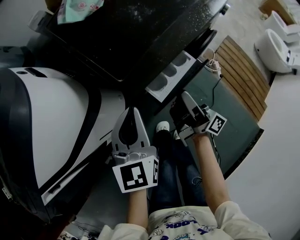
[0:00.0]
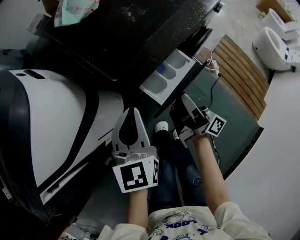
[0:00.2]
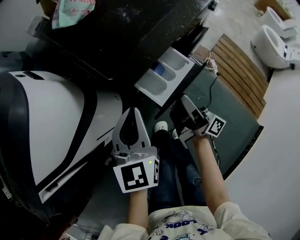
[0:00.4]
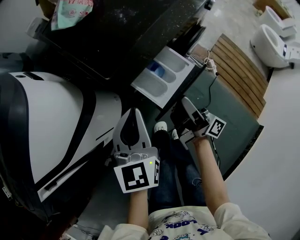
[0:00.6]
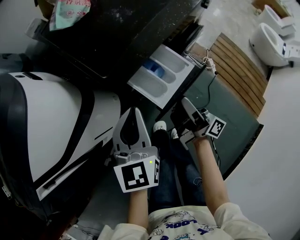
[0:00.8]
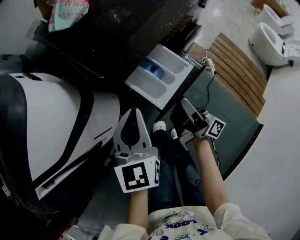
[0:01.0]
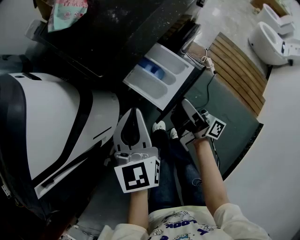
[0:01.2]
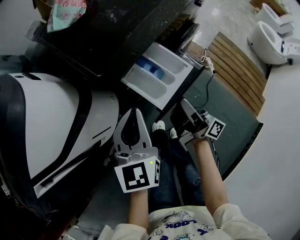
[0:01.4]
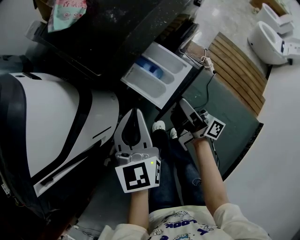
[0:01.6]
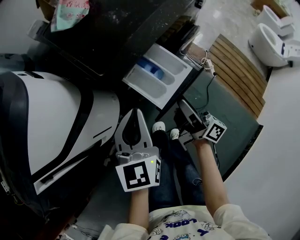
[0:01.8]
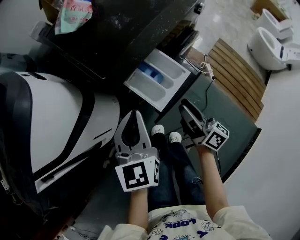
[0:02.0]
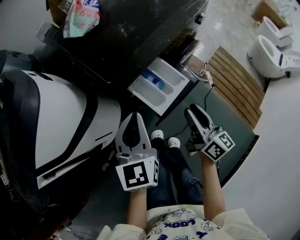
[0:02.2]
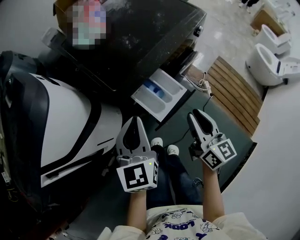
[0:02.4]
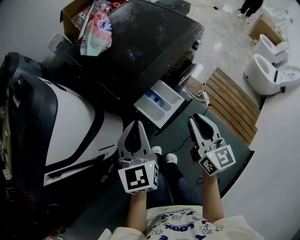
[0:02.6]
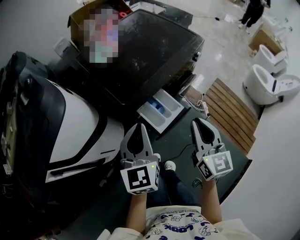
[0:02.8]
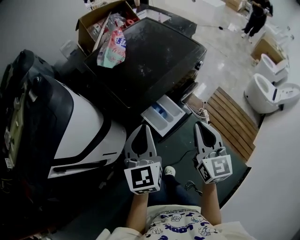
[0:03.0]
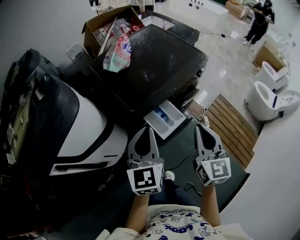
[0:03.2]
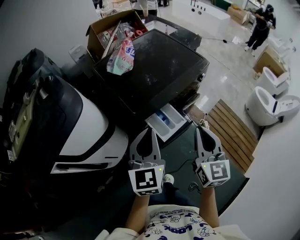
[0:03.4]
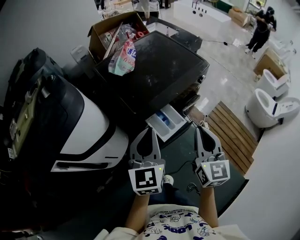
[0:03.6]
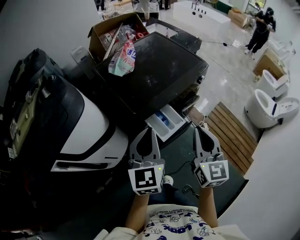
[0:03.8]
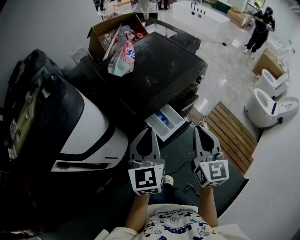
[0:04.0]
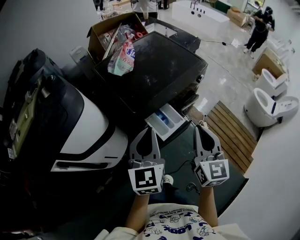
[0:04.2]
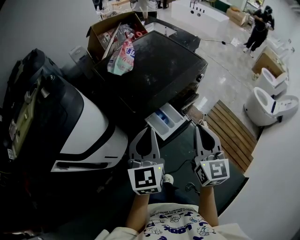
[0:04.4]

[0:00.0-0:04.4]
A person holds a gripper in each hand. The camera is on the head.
0.0 to 1.4 s: The left gripper travels to the right and backward by about 10 cm. Meanwhile the right gripper goes approximately 10 cm backward.
1.4 to 3.0 s: Both grippers travel together upward, approximately 20 cm. The right gripper rotates around the line of its fingers by approximately 80 degrees, counterclockwise from behind, and closes its fingers.
3.0 to 4.4 s: The grippers make only small movements.

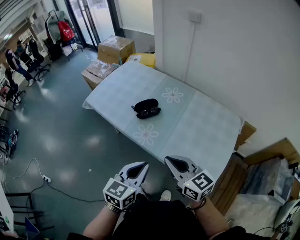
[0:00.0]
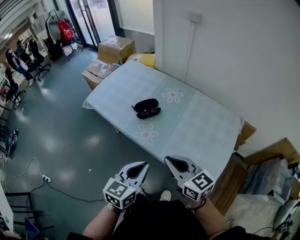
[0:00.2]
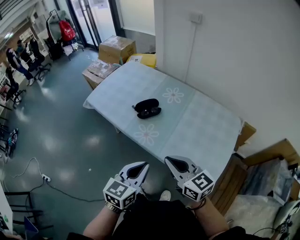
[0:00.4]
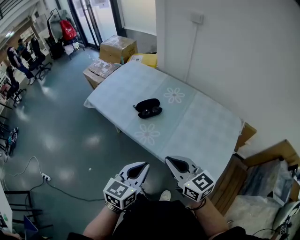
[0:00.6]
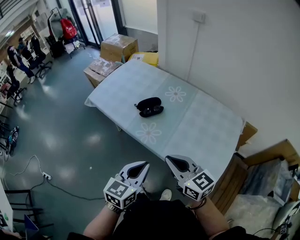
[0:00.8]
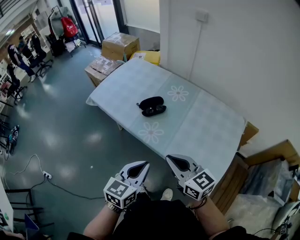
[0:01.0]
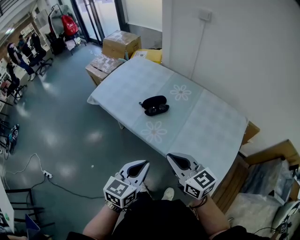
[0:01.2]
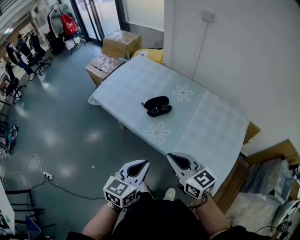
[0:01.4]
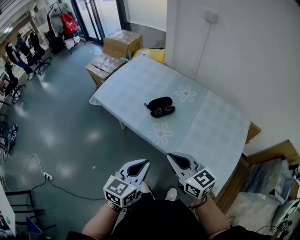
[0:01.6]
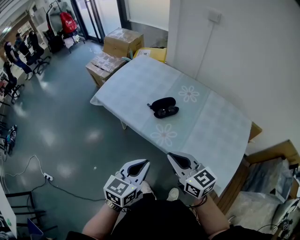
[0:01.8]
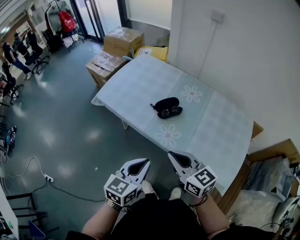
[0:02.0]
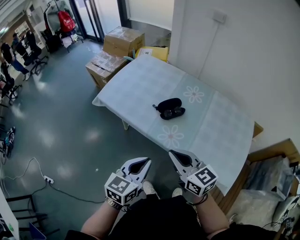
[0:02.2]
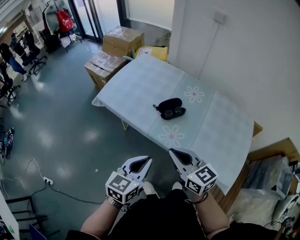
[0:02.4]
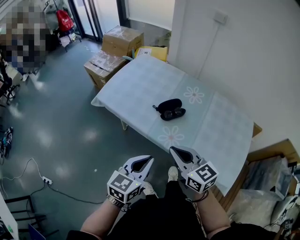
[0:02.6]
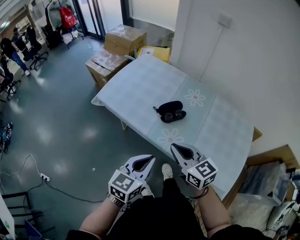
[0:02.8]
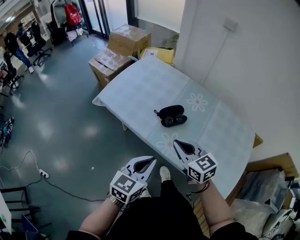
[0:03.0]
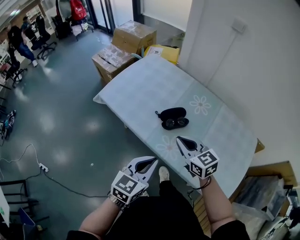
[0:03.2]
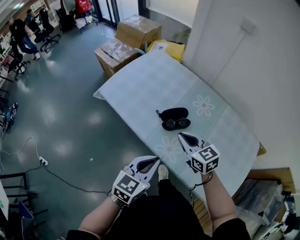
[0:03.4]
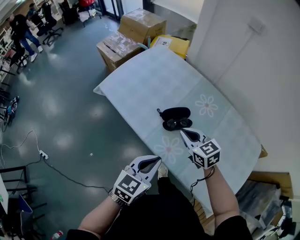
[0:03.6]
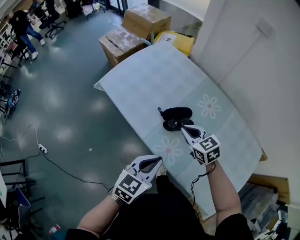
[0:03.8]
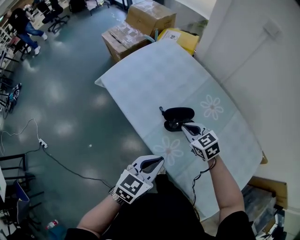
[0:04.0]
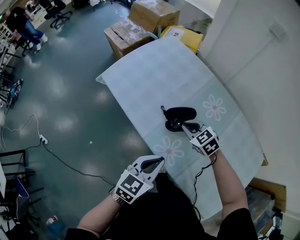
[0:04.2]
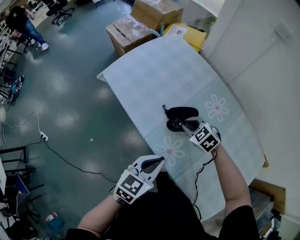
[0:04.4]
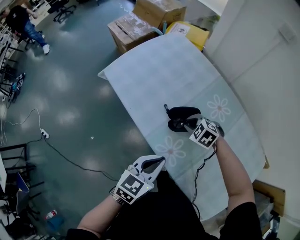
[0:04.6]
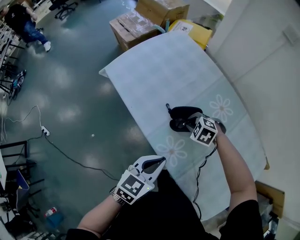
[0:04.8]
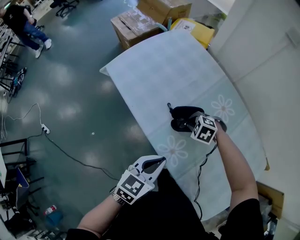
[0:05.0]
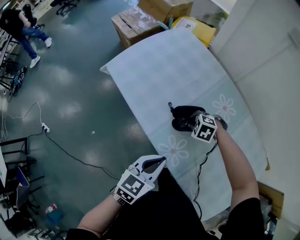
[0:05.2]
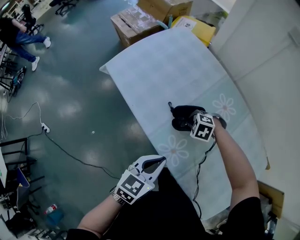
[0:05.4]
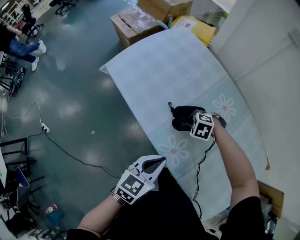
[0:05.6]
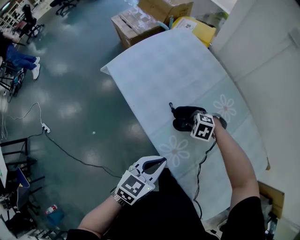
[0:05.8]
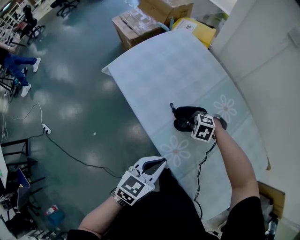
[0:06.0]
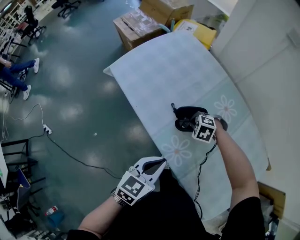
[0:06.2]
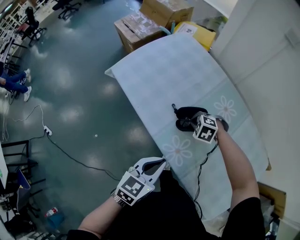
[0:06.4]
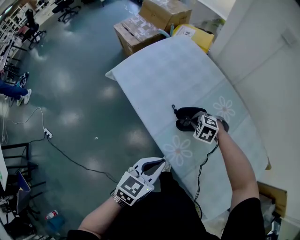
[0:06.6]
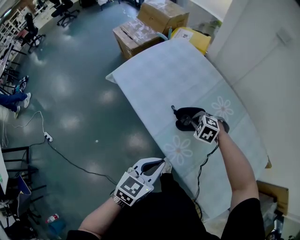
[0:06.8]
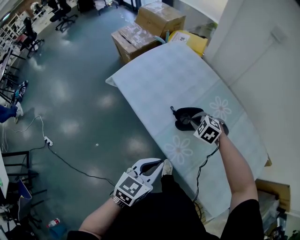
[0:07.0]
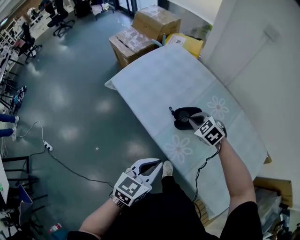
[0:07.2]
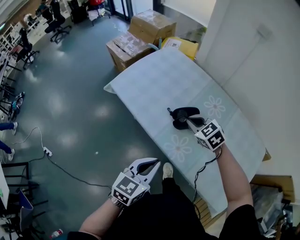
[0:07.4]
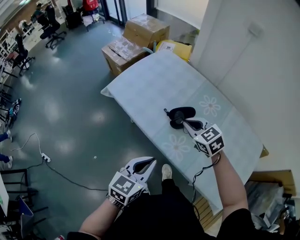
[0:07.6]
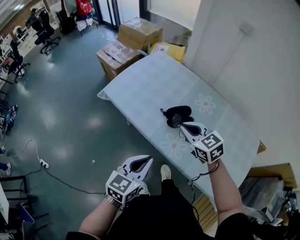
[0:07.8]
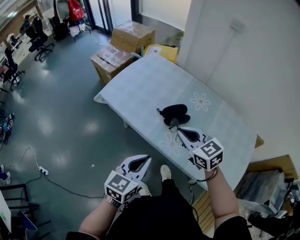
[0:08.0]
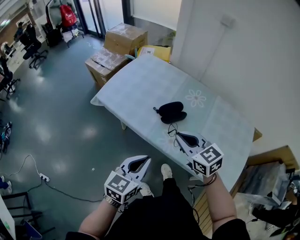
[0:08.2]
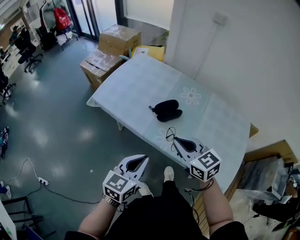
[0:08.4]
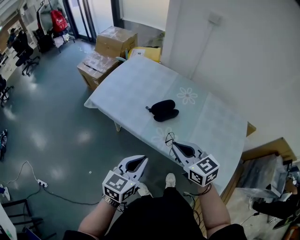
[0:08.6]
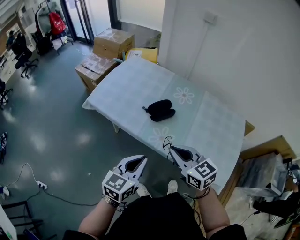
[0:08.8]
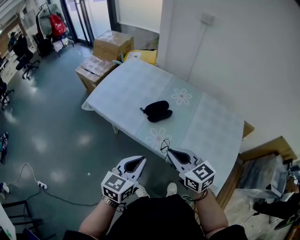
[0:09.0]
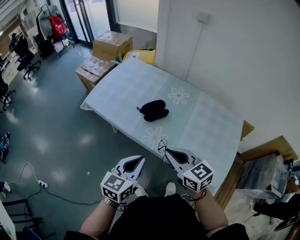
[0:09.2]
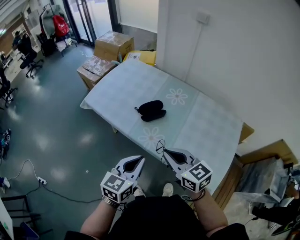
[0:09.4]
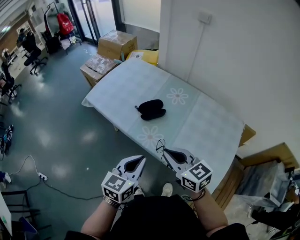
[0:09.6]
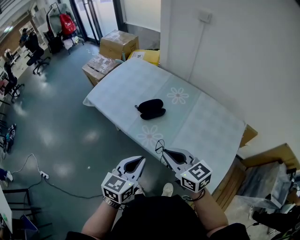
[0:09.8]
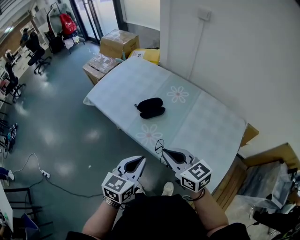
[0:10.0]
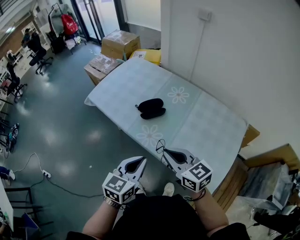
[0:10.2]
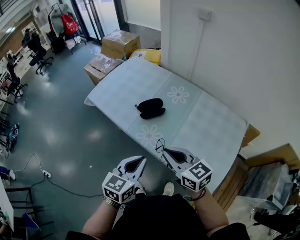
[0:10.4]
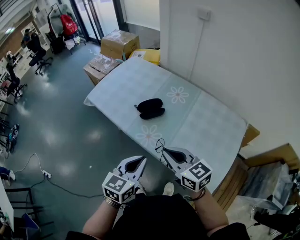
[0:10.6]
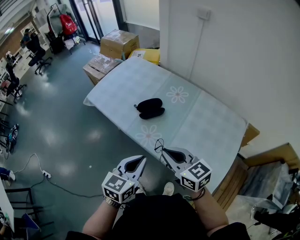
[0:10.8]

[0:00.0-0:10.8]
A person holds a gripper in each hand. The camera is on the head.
0.0 to 1.6 s: Both grippers travel together to the left, about 10 cm.
1.6 to 3.0 s: The right gripper goes roughly 15 cm forward; the left gripper is displaced forward by some 10 cm.
3.0 to 4.6 s: The left gripper is displaced forward, to the right and downward by some 10 cm, while the right gripper goes some 25 cm downward and forward, and tips its fingers downward by roughly 40 degrees.
6.2 to 7.8 s: The right gripper moves upward, some 25 cm, and angles its fingers upward, by roughly 50 degrees. Meanwhile the left gripper ends up roughly 10 cm from where it was.
7.8 to 9.2 s: The left gripper heads to the right and backward, covering some 10 cm; the right gripper heads backward, covering some 20 cm, and swivels some 20 degrees.
9.2 to 10.8 s: Both grippers travel together to the right, approximately 5 cm.

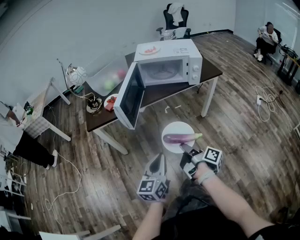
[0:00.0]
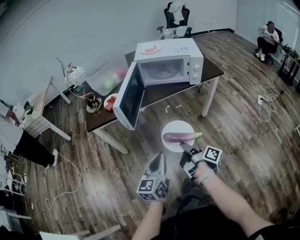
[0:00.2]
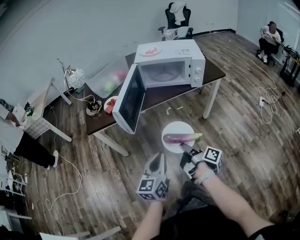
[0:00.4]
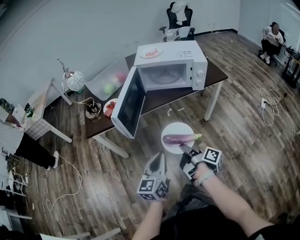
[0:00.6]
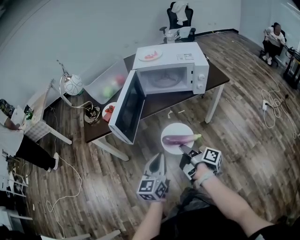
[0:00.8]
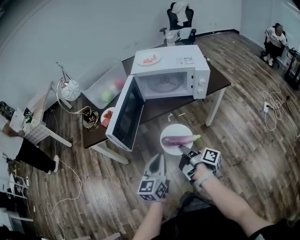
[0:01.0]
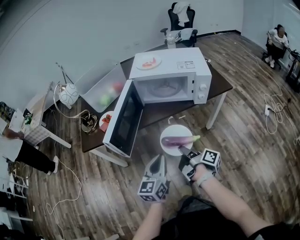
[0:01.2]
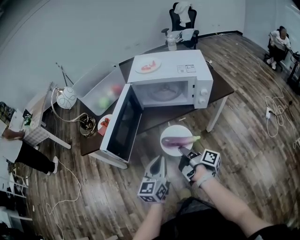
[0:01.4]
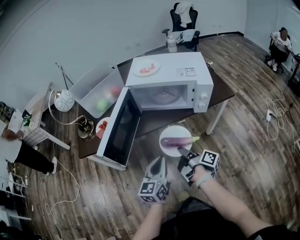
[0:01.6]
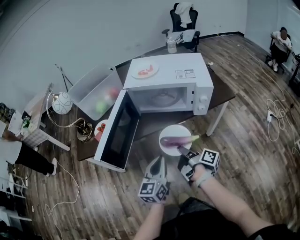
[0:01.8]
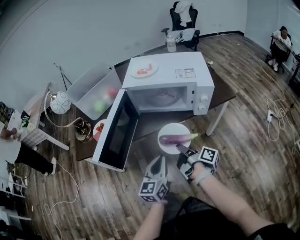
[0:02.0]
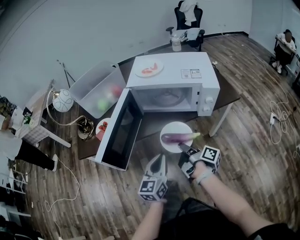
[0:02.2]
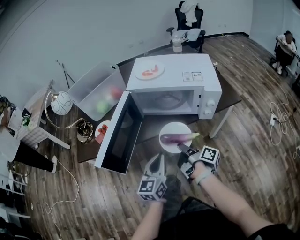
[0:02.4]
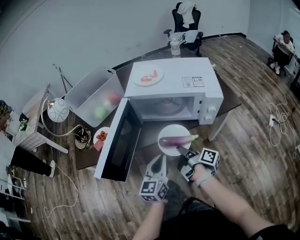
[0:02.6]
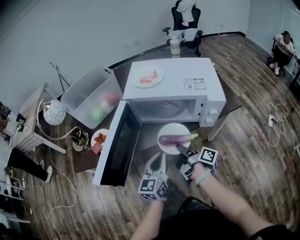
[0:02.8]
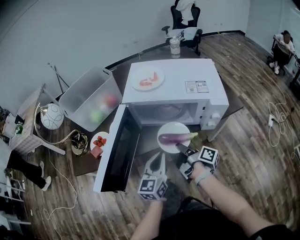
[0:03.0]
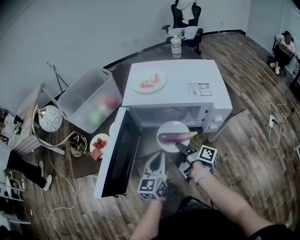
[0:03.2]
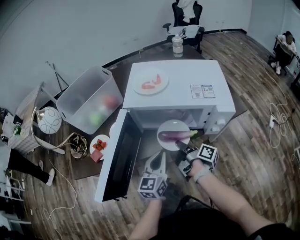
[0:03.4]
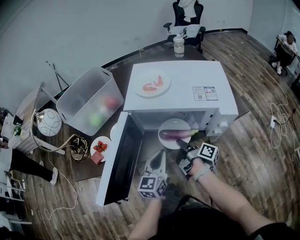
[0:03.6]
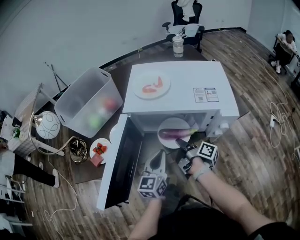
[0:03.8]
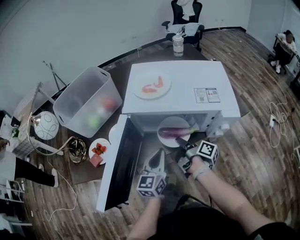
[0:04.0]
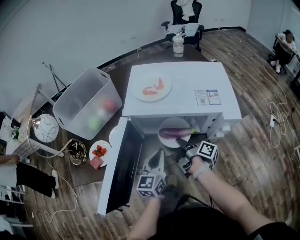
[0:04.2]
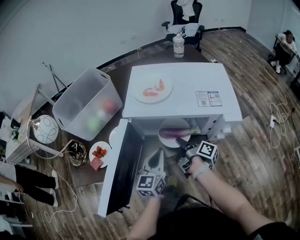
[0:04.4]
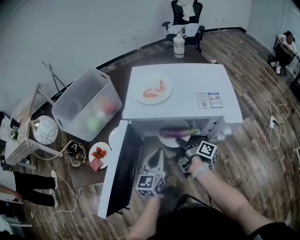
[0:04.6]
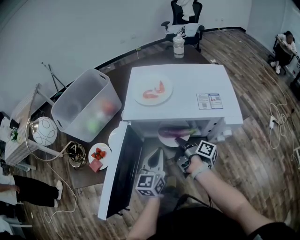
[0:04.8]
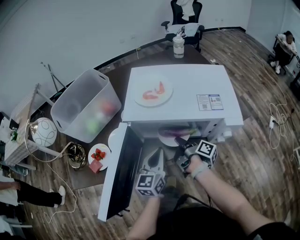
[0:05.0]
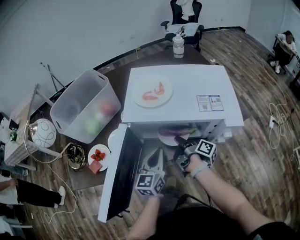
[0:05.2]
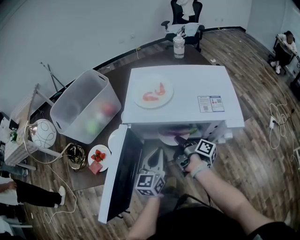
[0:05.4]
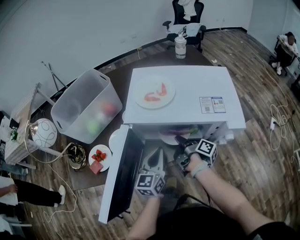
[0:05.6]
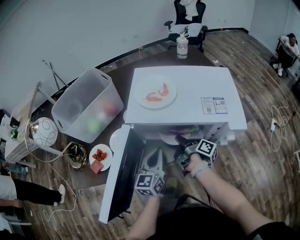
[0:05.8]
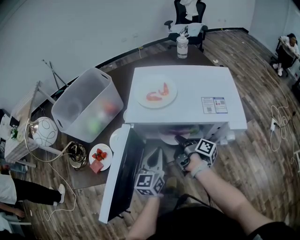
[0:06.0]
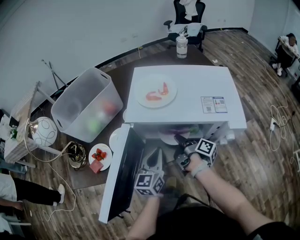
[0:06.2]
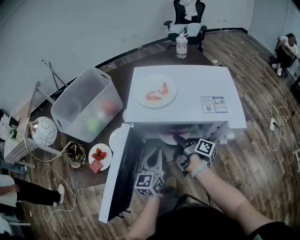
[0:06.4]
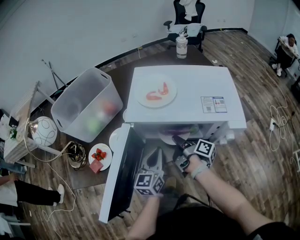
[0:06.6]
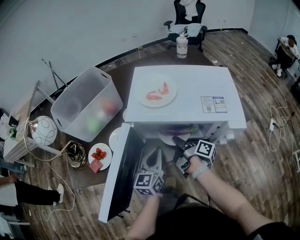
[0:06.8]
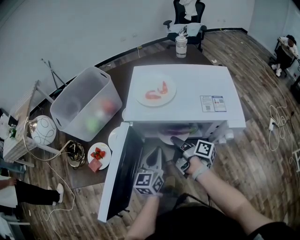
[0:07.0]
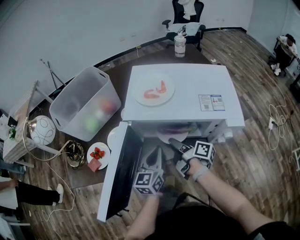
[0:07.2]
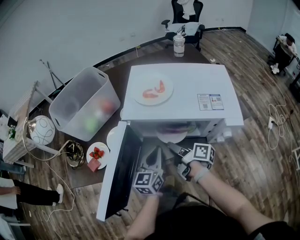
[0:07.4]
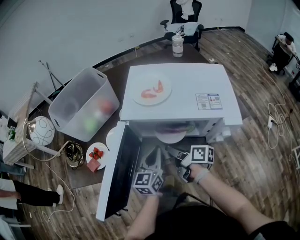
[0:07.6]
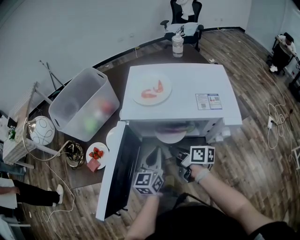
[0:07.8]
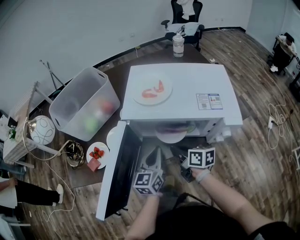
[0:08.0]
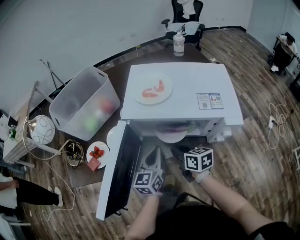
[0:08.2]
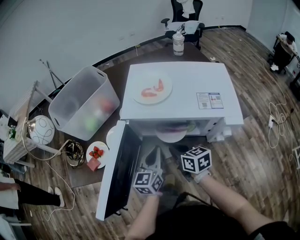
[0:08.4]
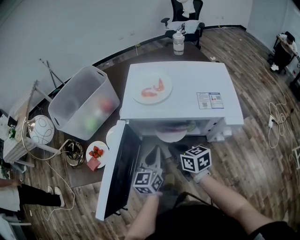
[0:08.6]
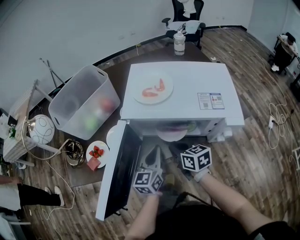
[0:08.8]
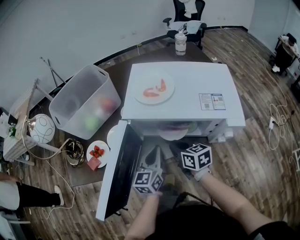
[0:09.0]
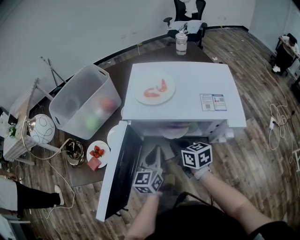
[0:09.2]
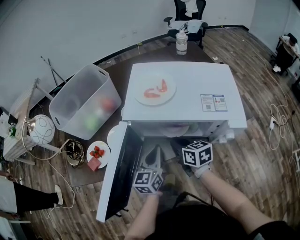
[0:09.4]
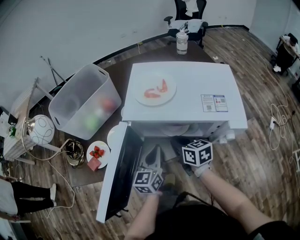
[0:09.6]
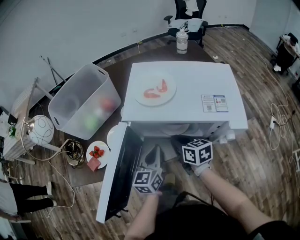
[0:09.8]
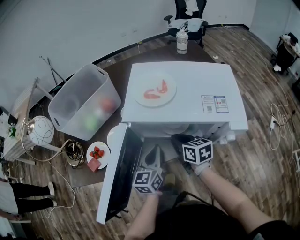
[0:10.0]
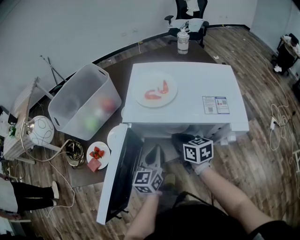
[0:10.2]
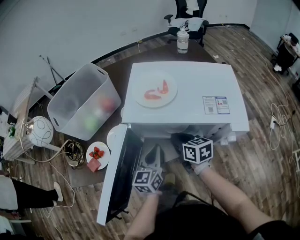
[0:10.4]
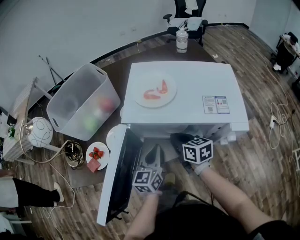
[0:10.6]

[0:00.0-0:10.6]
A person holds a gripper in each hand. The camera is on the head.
0.0 to 1.6 s: The grippers both shift forward by about 25 cm.
1.6 to 3.0 s: Both grippers travel together forward, approximately 15 cm.
3.0 to 4.6 s: Both grippers travel together forward, roughly 10 cm.
4.6 to 6.0 s: The grippers move only a little.
6.0 to 7.6 s: The right gripper travels backward by roughly 5 cm, turns by some 40 degrees, and opens up.
7.6 to 9.0 s: The right gripper swivels approximately 40 degrees, and closes up.
9.0 to 10.6 s: The grippers make only small movements.
